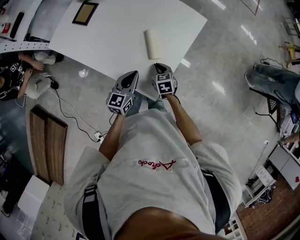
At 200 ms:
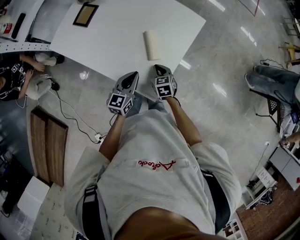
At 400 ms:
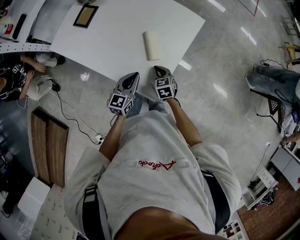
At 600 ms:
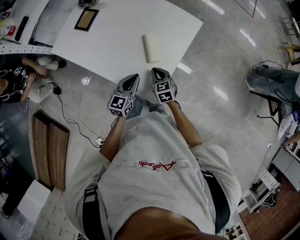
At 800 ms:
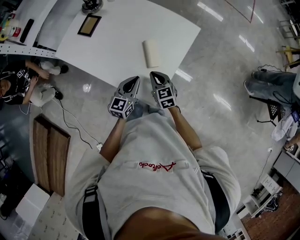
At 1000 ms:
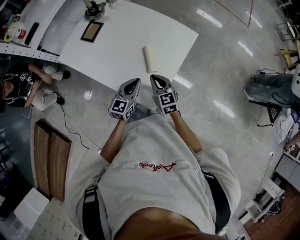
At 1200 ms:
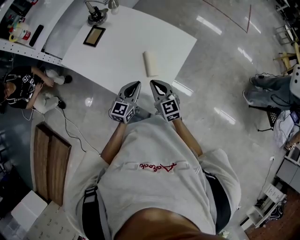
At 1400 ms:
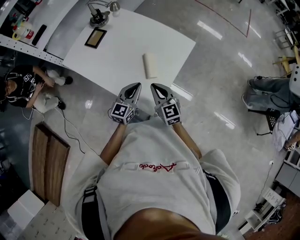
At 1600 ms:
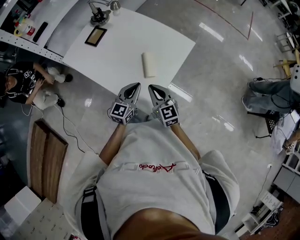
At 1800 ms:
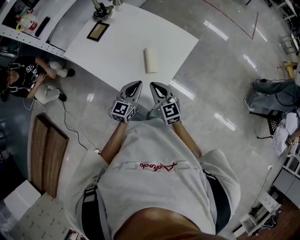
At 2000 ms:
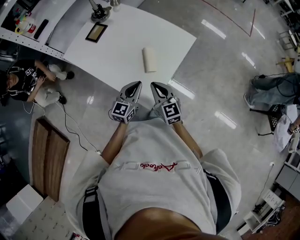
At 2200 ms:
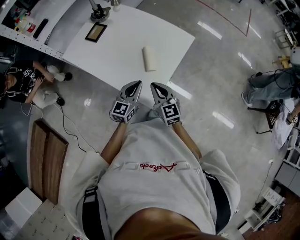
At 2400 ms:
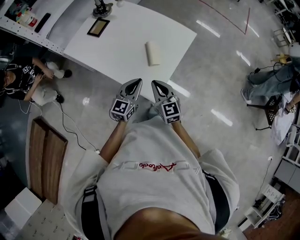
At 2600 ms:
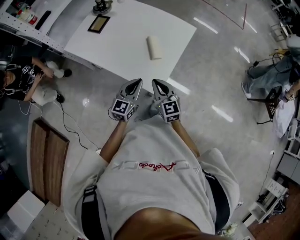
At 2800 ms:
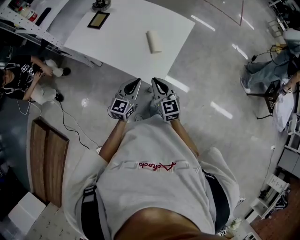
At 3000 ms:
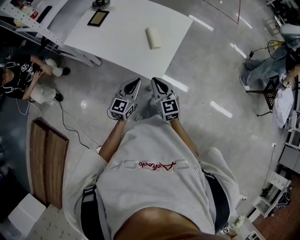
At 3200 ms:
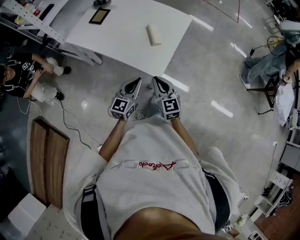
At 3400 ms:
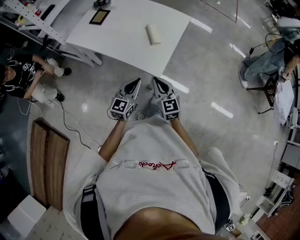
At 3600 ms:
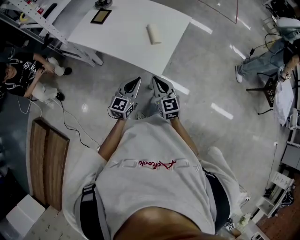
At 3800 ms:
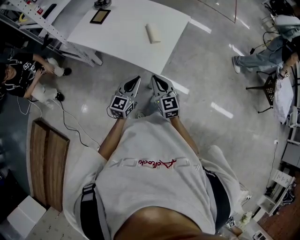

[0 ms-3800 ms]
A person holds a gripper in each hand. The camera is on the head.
0 ms to 1200 ms: The right gripper heads upward, covering approximately 20 cm, and tilts its fingers some 30 degrees upward; the left gripper shifts roughly 5 cm upward.
1200 ms to 2600 ms: Both grippers move backward, approximately 10 cm.
2600 ms to 3800 ms: The two grippers go roughly 10 cm backward.

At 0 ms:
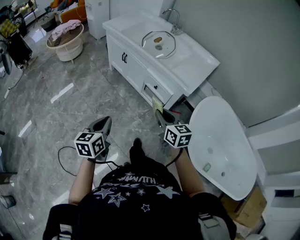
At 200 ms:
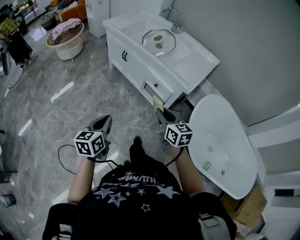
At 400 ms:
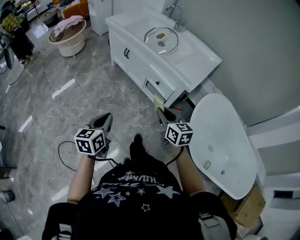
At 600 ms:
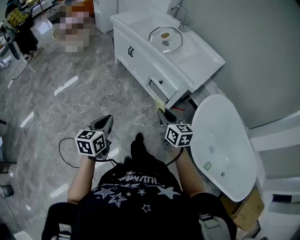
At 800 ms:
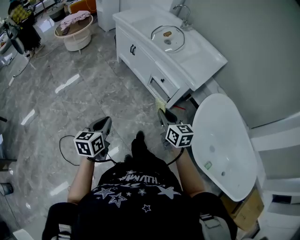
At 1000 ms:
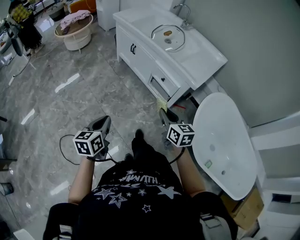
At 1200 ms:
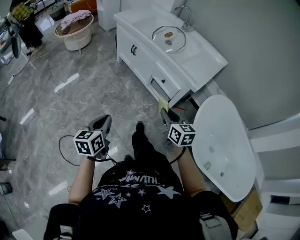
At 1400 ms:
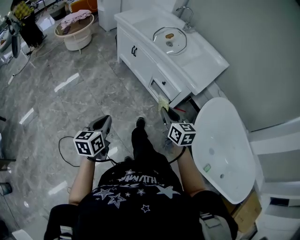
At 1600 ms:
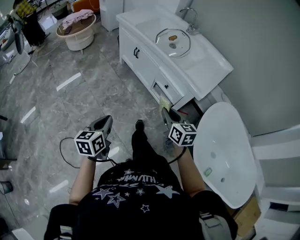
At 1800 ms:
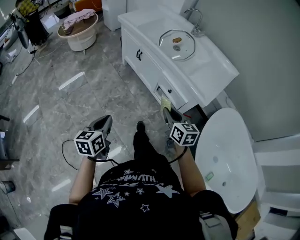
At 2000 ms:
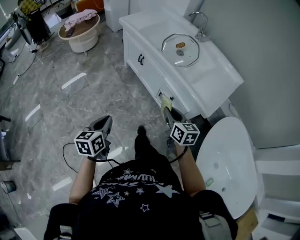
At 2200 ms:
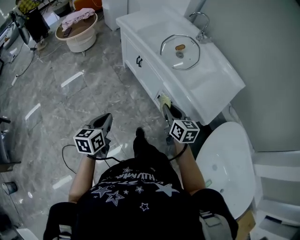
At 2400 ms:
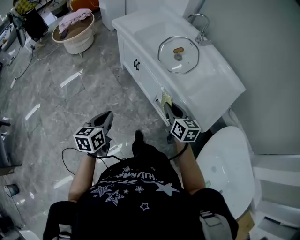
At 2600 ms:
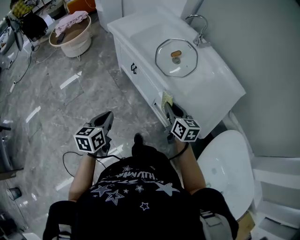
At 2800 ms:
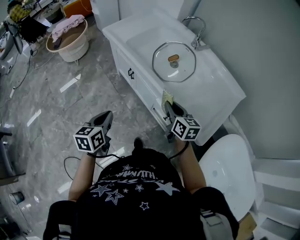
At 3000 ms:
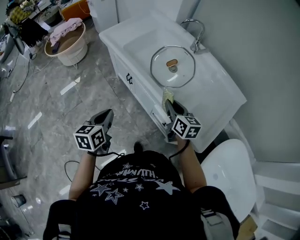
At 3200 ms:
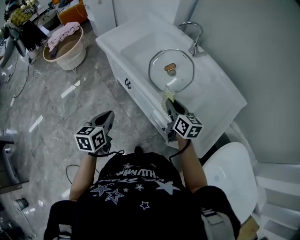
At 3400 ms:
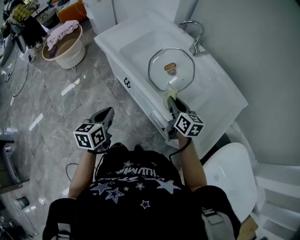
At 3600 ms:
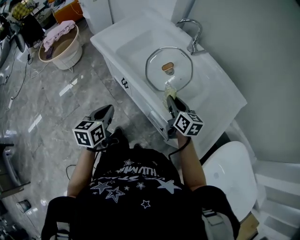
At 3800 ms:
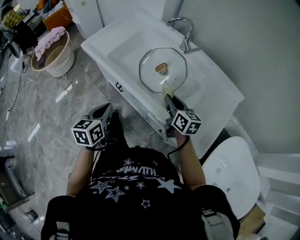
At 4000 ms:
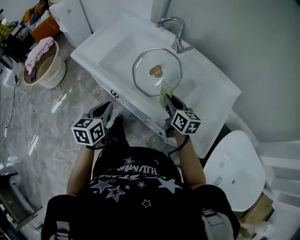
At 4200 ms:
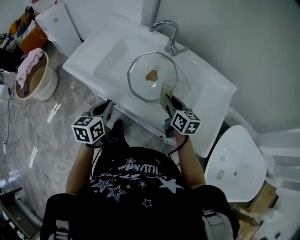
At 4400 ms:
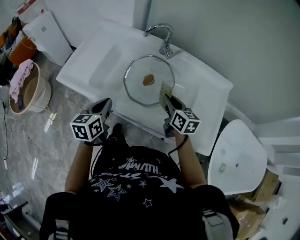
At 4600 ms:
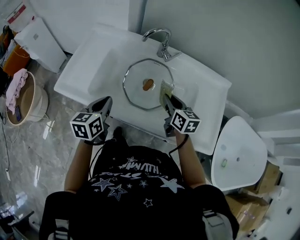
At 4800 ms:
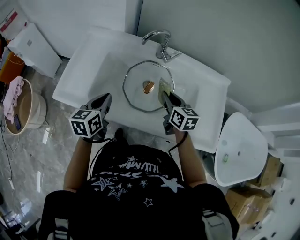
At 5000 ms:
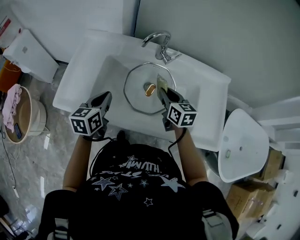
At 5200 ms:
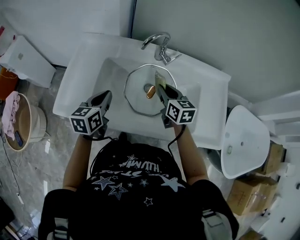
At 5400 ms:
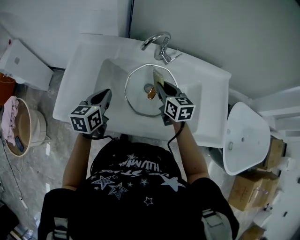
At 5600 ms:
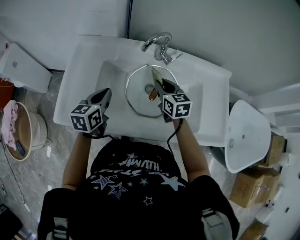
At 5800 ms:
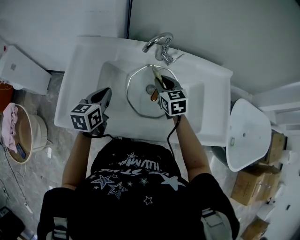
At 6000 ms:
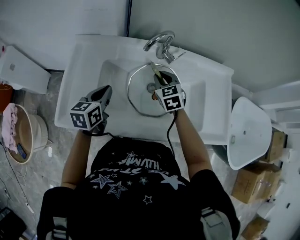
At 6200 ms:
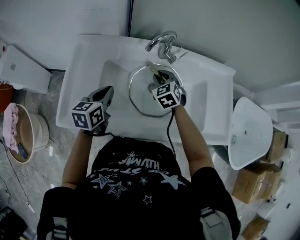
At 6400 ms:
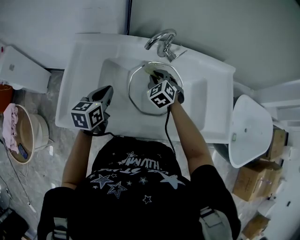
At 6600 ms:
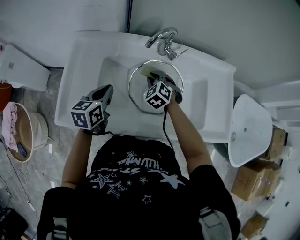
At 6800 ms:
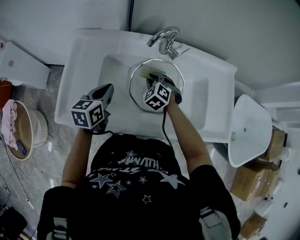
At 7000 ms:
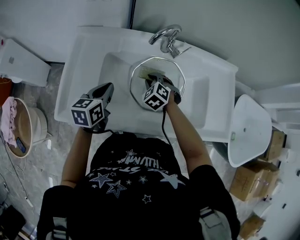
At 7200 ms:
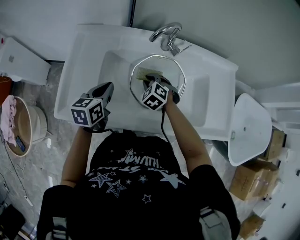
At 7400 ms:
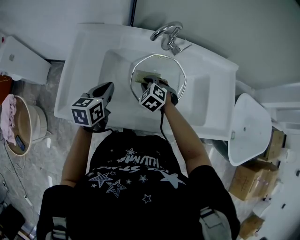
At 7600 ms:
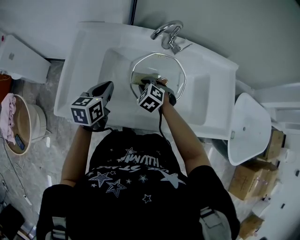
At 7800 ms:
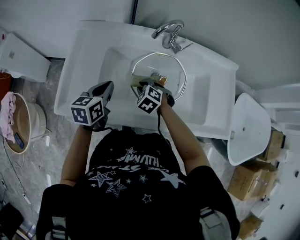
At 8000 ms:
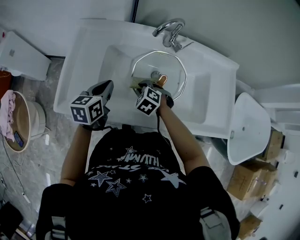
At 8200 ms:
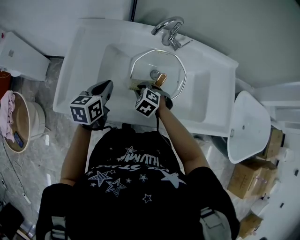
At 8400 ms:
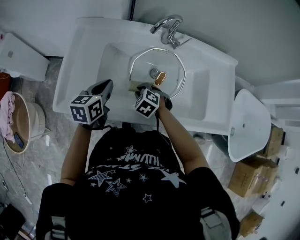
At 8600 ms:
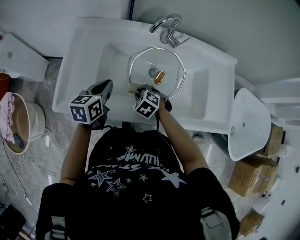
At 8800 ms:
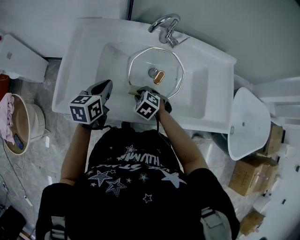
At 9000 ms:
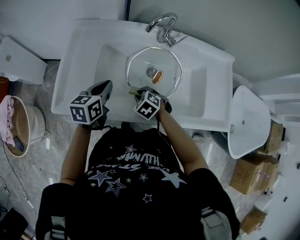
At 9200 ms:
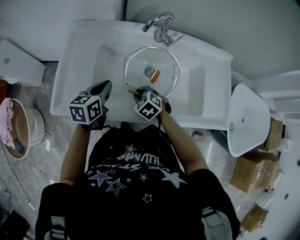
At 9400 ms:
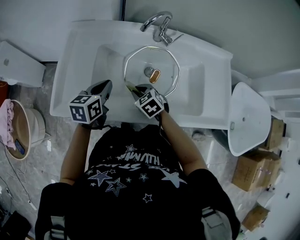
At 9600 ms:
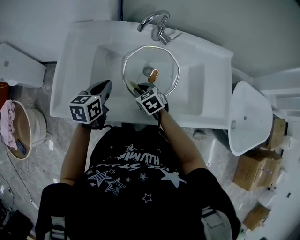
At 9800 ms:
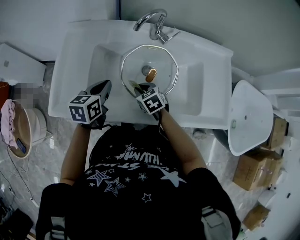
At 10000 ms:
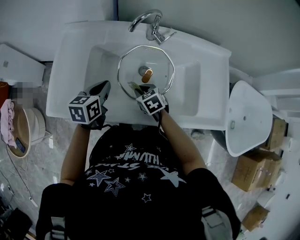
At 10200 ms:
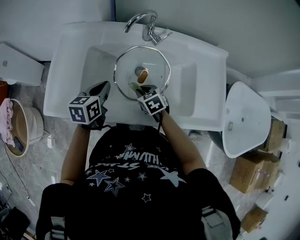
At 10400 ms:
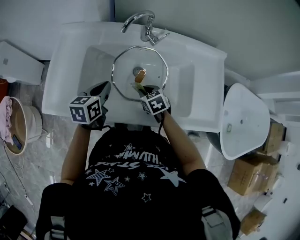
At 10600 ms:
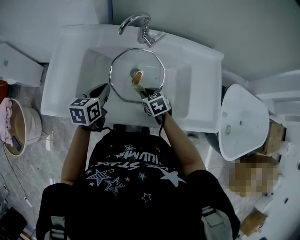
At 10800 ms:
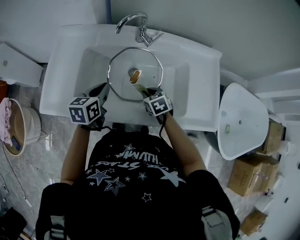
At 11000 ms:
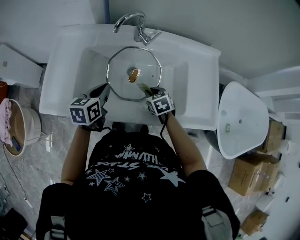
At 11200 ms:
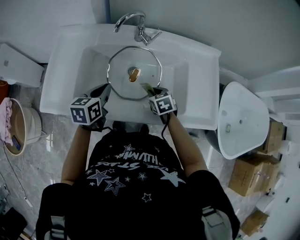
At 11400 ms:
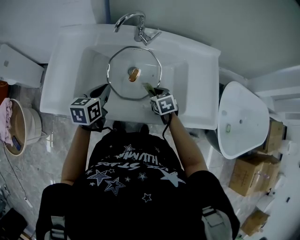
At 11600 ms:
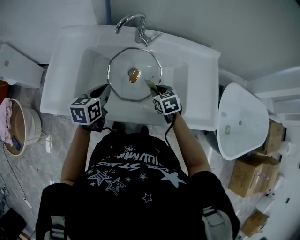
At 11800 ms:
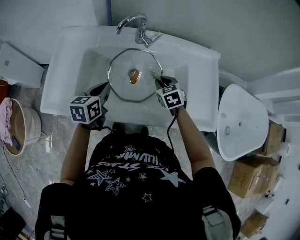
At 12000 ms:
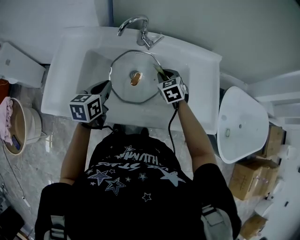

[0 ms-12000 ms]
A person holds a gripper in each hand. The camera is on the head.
1600 ms to 3000 ms: The two grippers go about 40 cm forward.
3000 ms to 4400 ms: The right gripper moves forward, some 15 cm, and turns by some 20 degrees; the left gripper is displaced forward by roughly 30 cm, and rotates about 30 degrees.
4400 ms to 6000 ms: The two grippers go roughly 20 cm forward and to the left. The left gripper swivels approximately 20 degrees. The right gripper turns by about 40 degrees.
6000 ms to 7600 ms: The right gripper heads downward, backward and to the left, covering some 15 cm, and rotates roughly 40 degrees.
7600 ms to 9000 ms: The right gripper moves backward, about 10 cm.
9000 ms to 10400 ms: Both grippers travel together to the right, roughly 10 cm. The right gripper rotates roughly 30 degrees.
10400 ms to 12000 ms: The right gripper travels to the right, upward and forward by approximately 15 cm, and swivels about 20 degrees.

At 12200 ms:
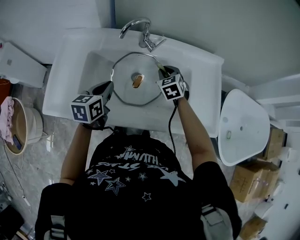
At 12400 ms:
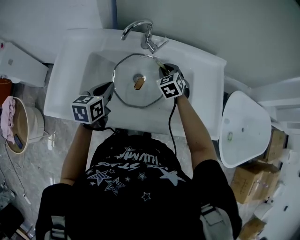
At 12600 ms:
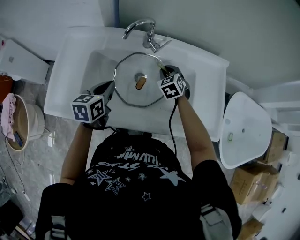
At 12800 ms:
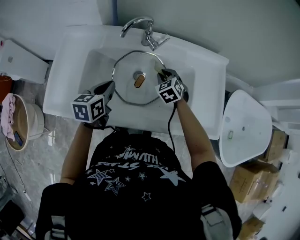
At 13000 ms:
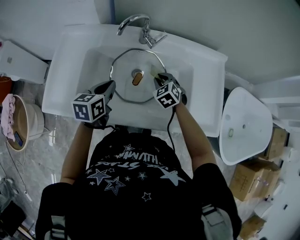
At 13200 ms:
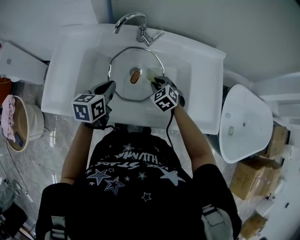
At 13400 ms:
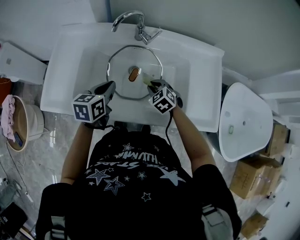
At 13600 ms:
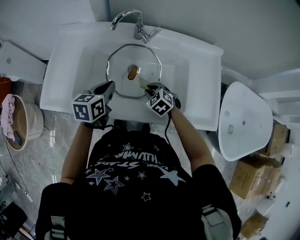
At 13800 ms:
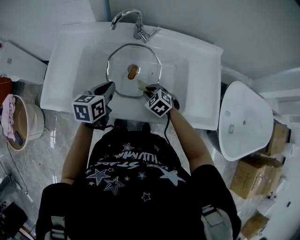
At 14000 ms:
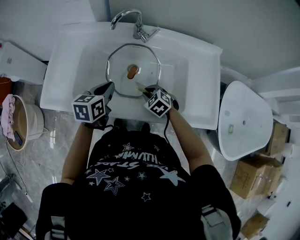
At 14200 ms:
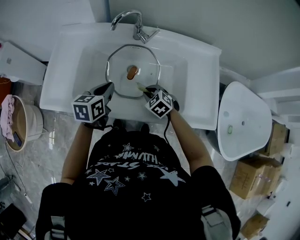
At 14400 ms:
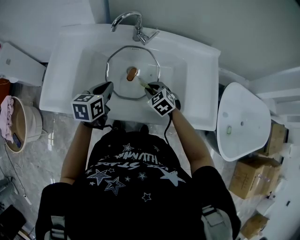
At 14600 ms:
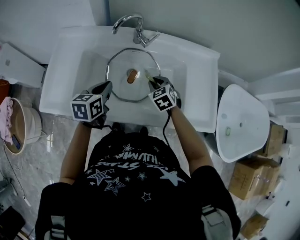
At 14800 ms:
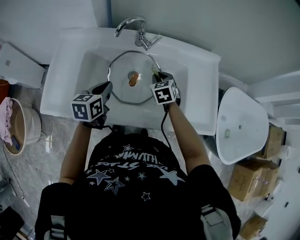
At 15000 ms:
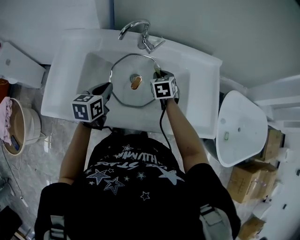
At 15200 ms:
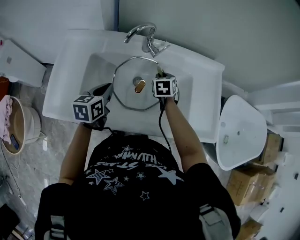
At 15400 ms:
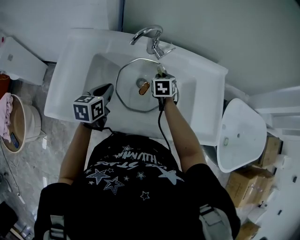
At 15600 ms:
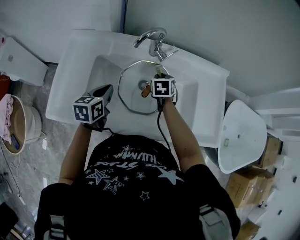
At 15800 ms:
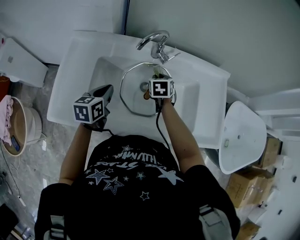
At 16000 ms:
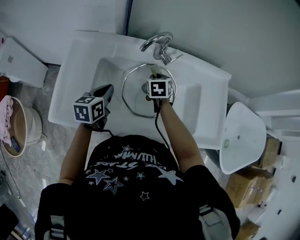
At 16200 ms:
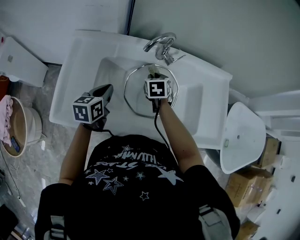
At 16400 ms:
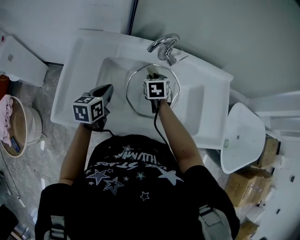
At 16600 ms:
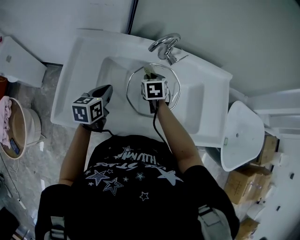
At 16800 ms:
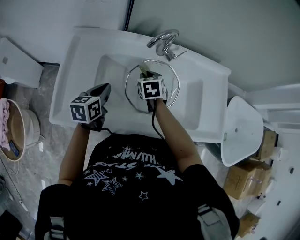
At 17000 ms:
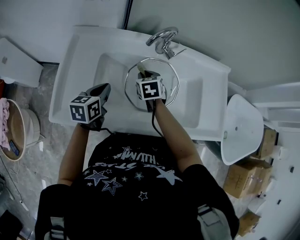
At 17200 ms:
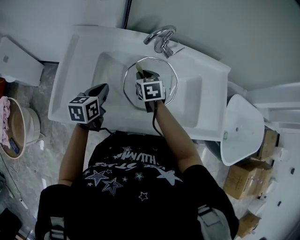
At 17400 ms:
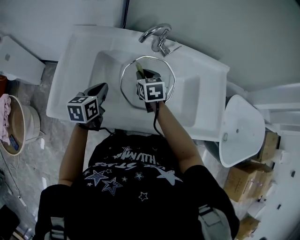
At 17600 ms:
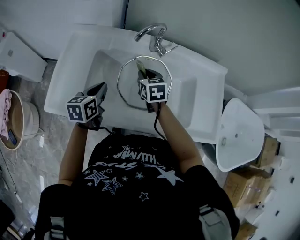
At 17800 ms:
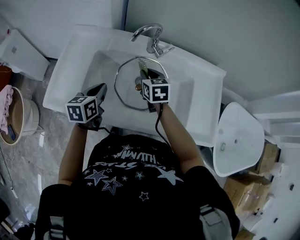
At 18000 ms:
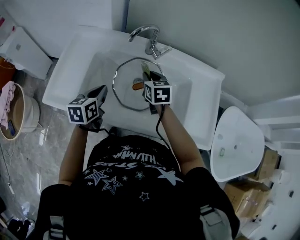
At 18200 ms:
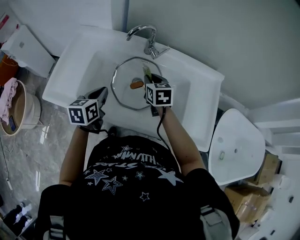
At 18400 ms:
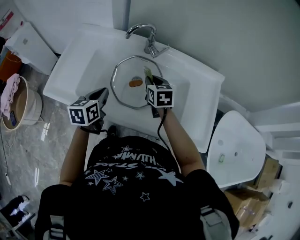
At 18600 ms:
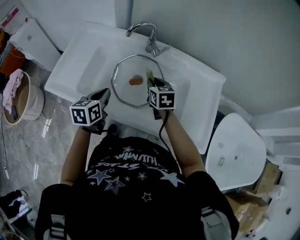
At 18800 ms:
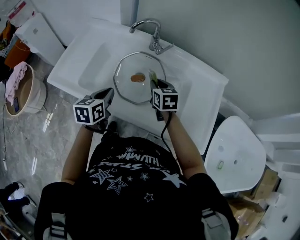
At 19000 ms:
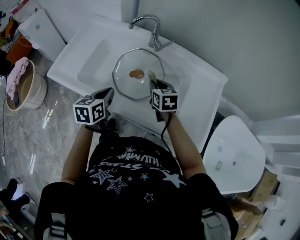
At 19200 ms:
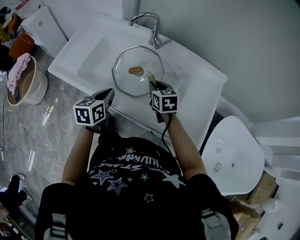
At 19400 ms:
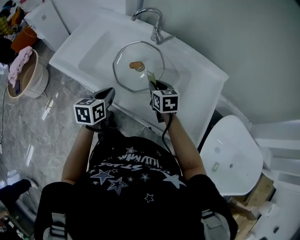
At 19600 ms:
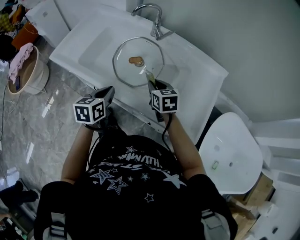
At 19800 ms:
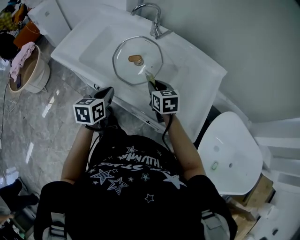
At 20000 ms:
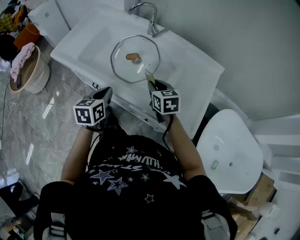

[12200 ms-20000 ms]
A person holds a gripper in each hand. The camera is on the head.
12200 ms to 13800 ms: The left gripper ends up approximately 5 cm from where it was; the right gripper travels backward and downward by approximately 15 cm, and swivels about 30 degrees.
13800 ms to 15400 ms: The left gripper moves to the left, approximately 10 cm. The right gripper moves forward, roughly 15 cm, and swivels roughly 40 degrees.
15400 ms to 16800 ms: The right gripper shifts roughly 15 cm to the left. The left gripper heads to the left, covering about 10 cm.
16800 ms to 18400 ms: The left gripper is displaced to the right and backward by roughly 15 cm; the right gripper travels to the right, backward and upward by roughly 15 cm.
18400 ms to 20000 ms: The grippers both shift backward and to the right by some 20 cm.
